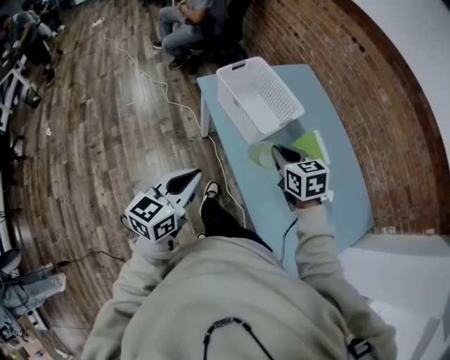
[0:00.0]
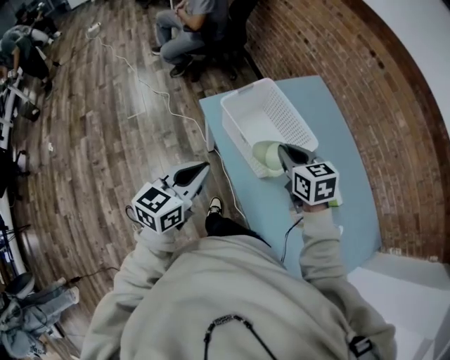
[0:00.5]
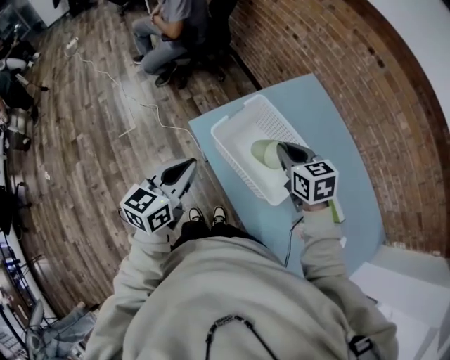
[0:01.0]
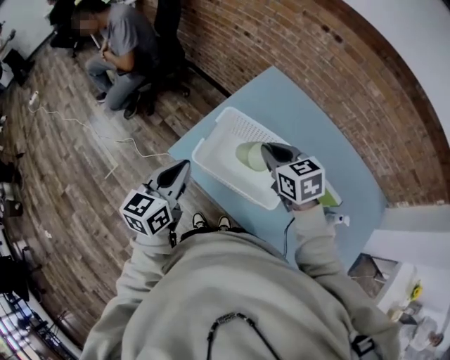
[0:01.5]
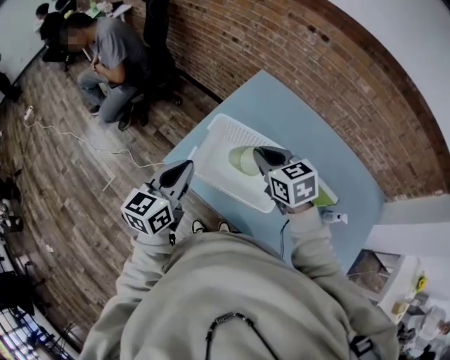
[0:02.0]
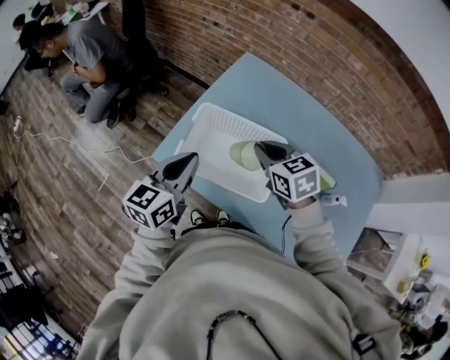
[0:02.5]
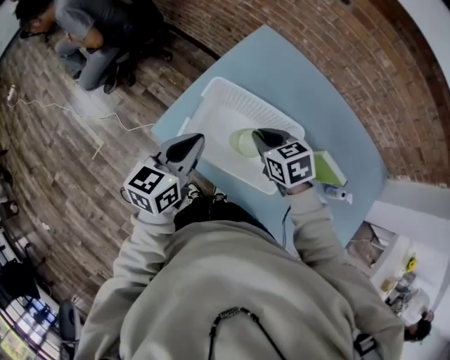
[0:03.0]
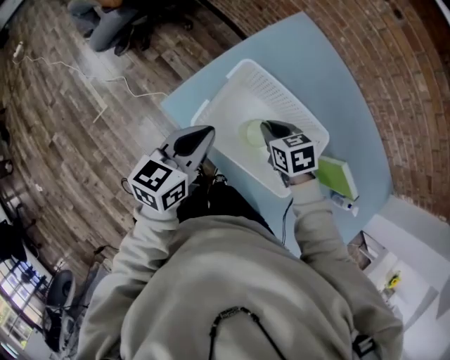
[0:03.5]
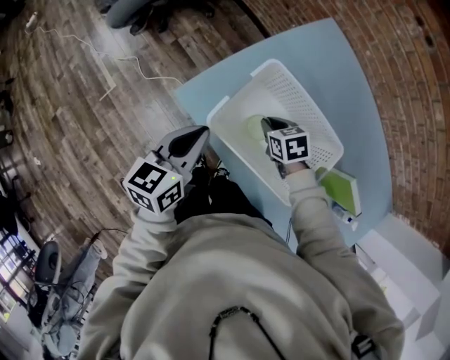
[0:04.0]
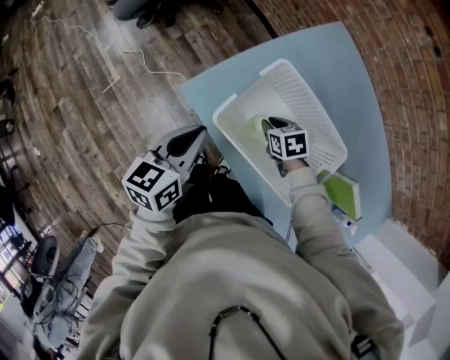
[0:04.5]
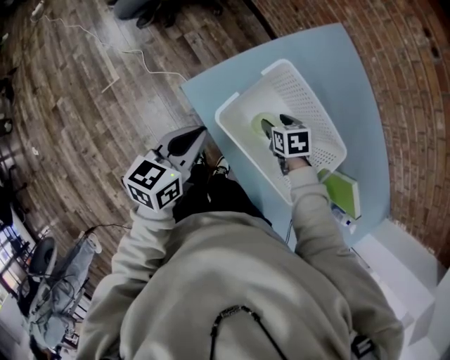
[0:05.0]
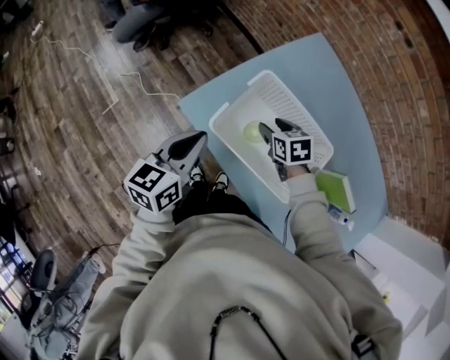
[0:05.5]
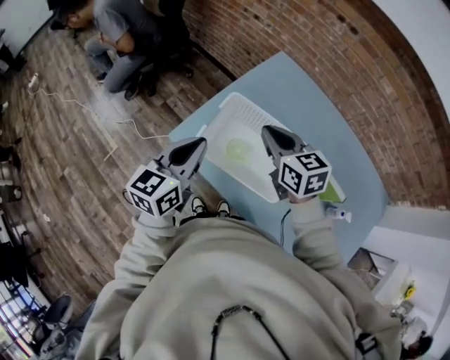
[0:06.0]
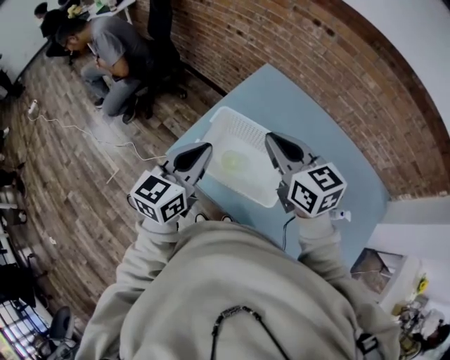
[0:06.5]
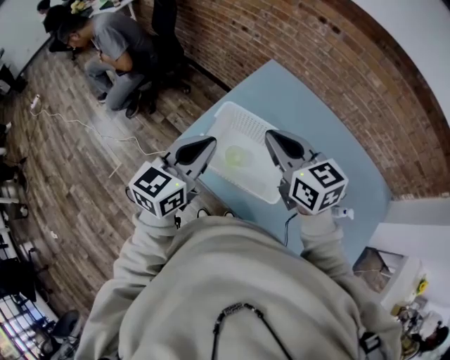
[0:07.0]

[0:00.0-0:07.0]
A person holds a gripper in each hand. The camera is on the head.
0:00.0 to 0:02.0: The grippers both shift forward by roughly 35 cm. The left gripper swivels some 20 degrees.
0:02.0 to 0:03.5: The right gripper goes some 20 cm downward, and rotates approximately 20 degrees. Meanwhile the left gripper shifts about 10 cm downward.
0:03.5 to 0:05.0: The right gripper goes approximately 10 cm downward, and opens up; the left gripper goes roughly 5 cm to the left.
0:05.0 to 0:07.0: The left gripper moves upward and to the right, approximately 20 cm, and swivels roughly 30 degrees. Meanwhile the right gripper travels upward by roughly 40 cm, points its fingers approximately 50 degrees further upward, and closes its fingers.

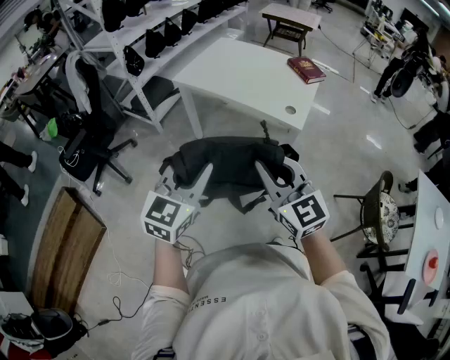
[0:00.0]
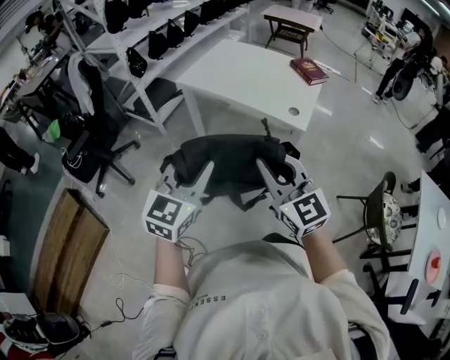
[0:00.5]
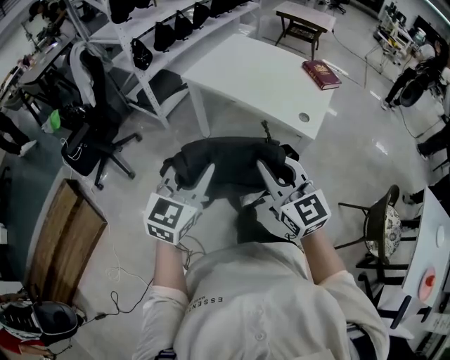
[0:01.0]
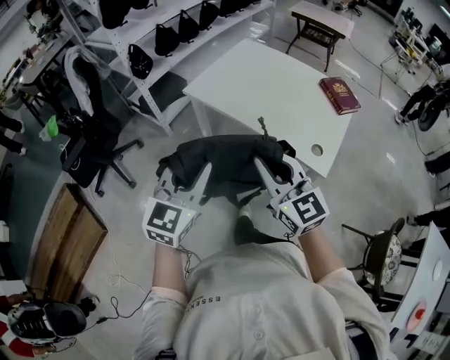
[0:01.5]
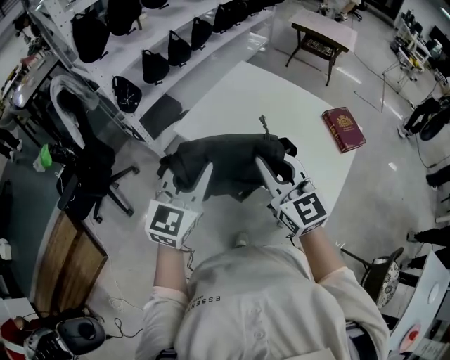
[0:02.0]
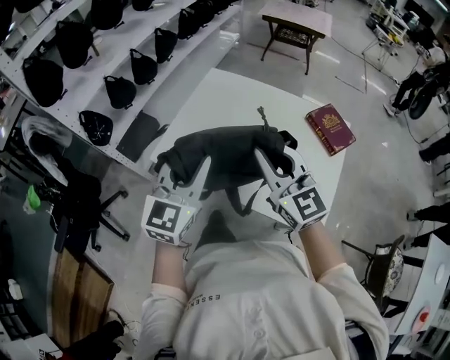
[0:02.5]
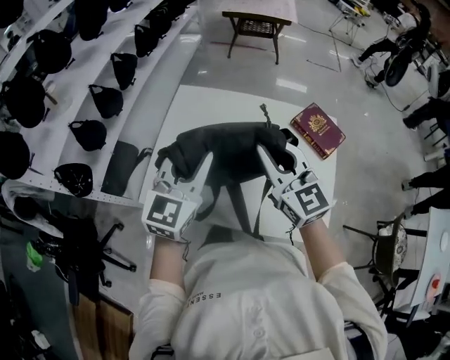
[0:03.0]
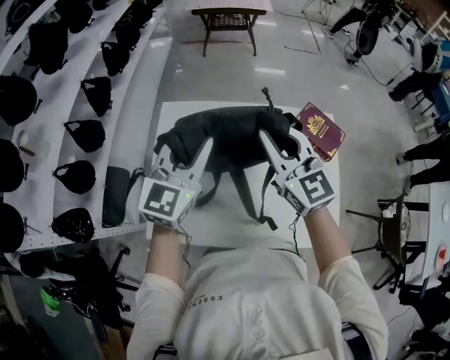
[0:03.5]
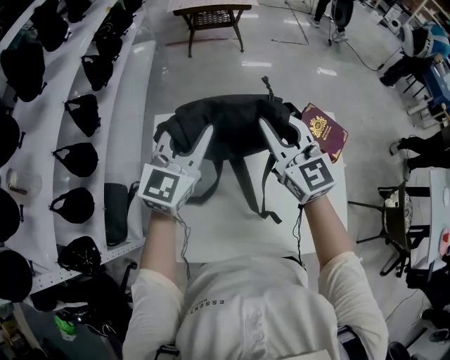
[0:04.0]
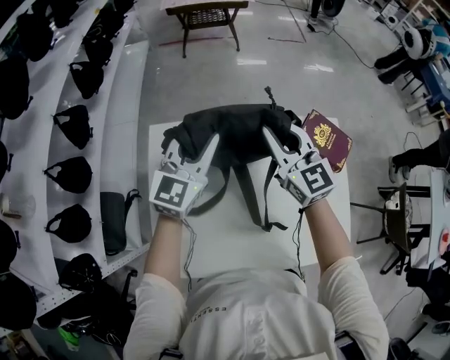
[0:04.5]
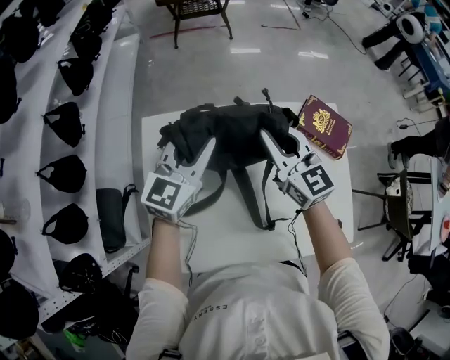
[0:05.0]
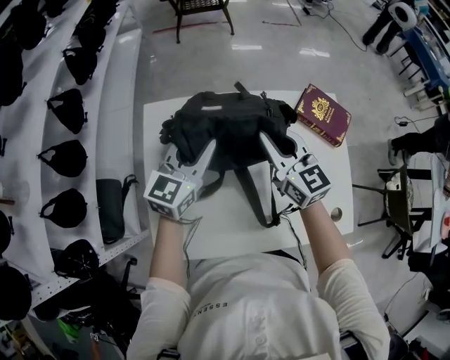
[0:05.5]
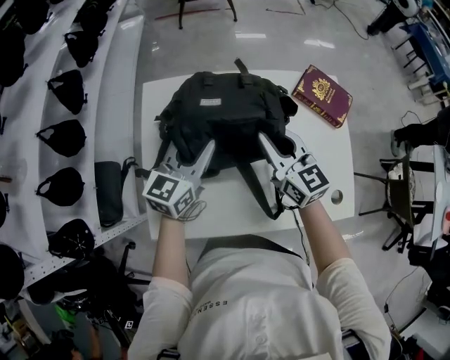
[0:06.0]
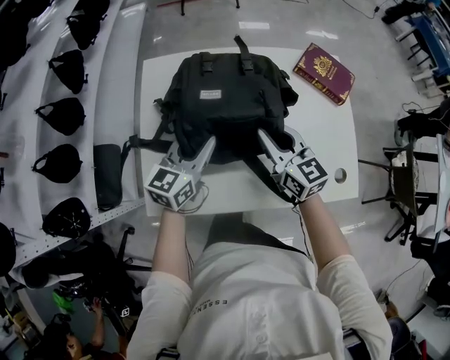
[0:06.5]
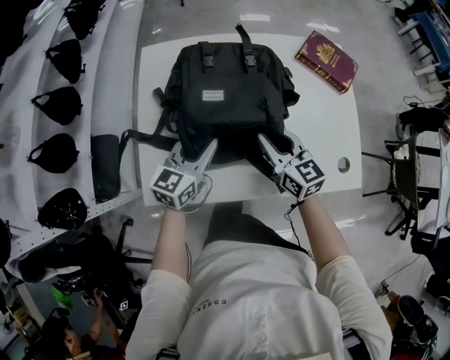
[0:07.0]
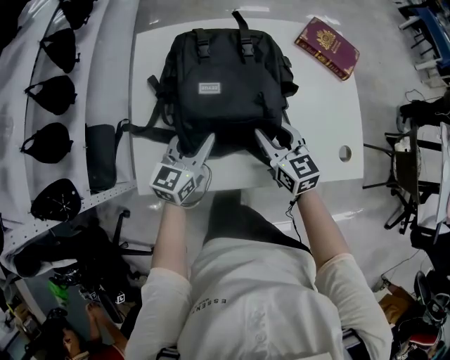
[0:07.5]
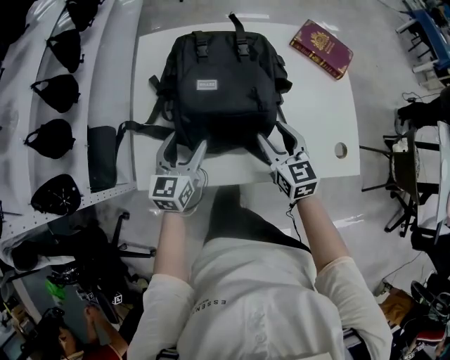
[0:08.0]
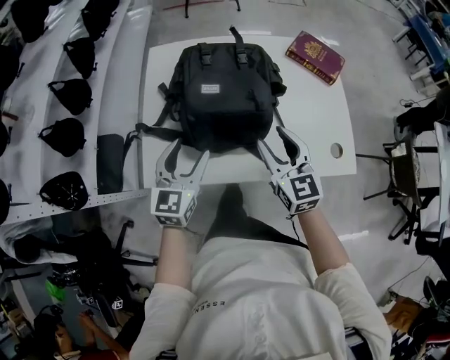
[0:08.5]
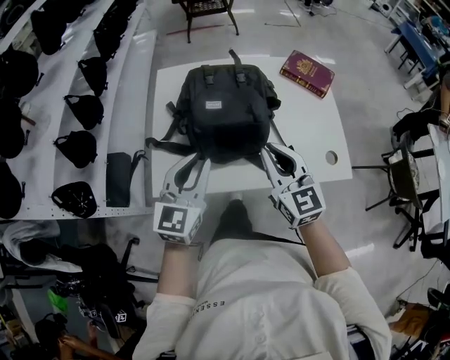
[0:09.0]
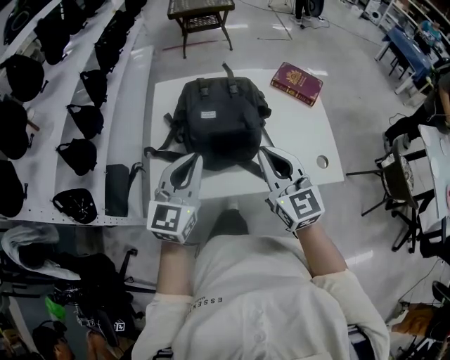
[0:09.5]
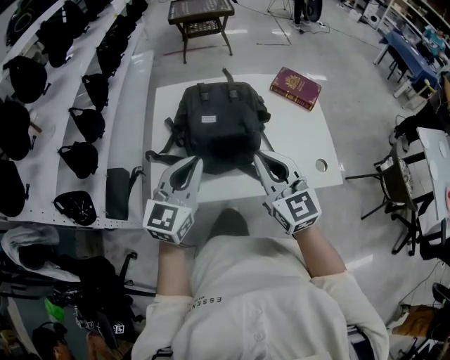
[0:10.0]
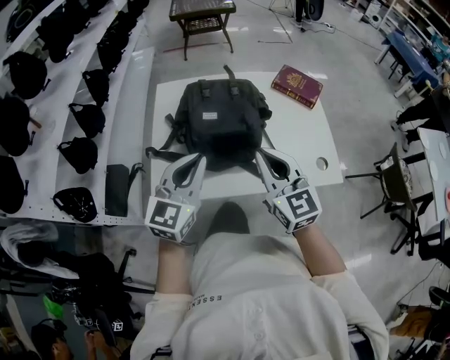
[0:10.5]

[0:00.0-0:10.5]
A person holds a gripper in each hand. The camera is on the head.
0:00.0 to 0:02.0: The pair of grippers is taken forward, some 40 cm.
0:02.0 to 0:04.0: The pair of grippers is taken some 50 cm. The right gripper turns by approximately 40 degrees; the left gripper turns by about 40 degrees.
0:04.0 to 0:06.5: Both grippers travel together downward and backward, about 25 cm. The right gripper swivels roughly 20 degrees. The left gripper changes its angle by roughly 30 degrees.
0:06.5 to 0:08.5: Both grippers travel together backward, some 15 cm. The right gripper opens up. Meanwhile the left gripper rotates some 20 degrees, and opens up.
0:08.5 to 0:10.5: The left gripper is displaced upward by roughly 15 cm, and closes. Meanwhile the right gripper heads upward and backward, covering about 15 cm, and closes.

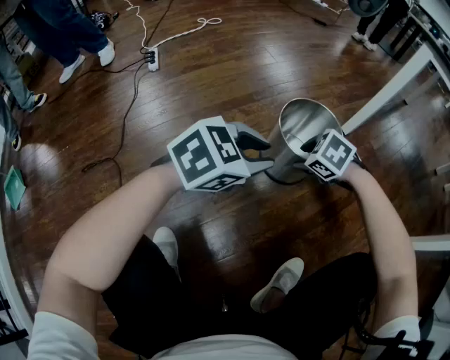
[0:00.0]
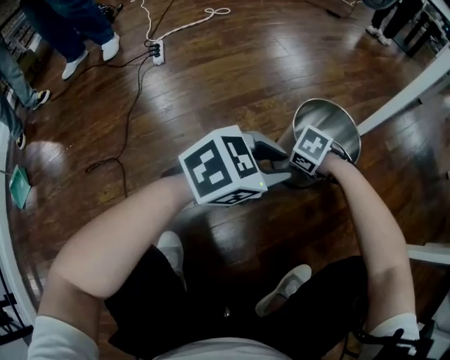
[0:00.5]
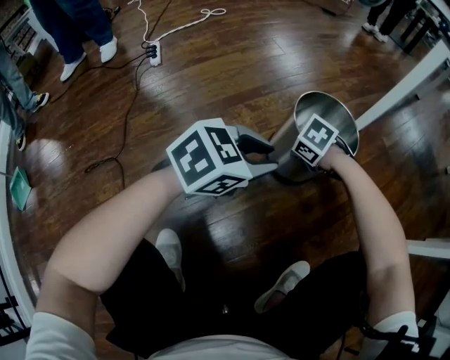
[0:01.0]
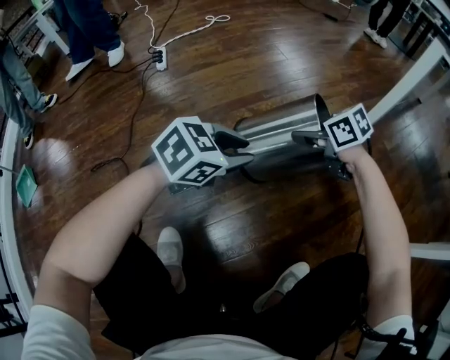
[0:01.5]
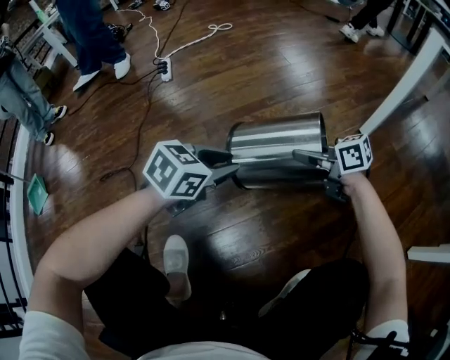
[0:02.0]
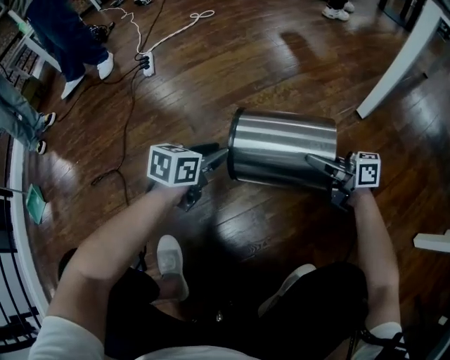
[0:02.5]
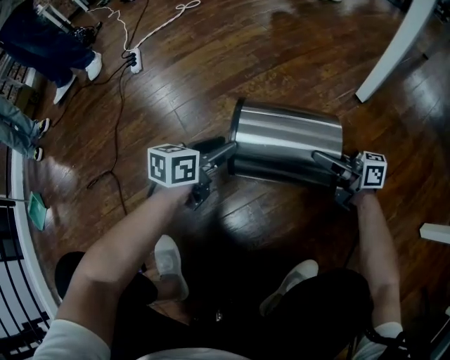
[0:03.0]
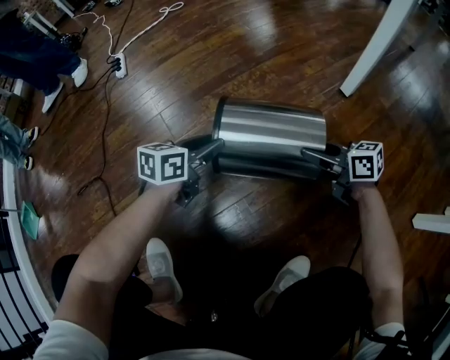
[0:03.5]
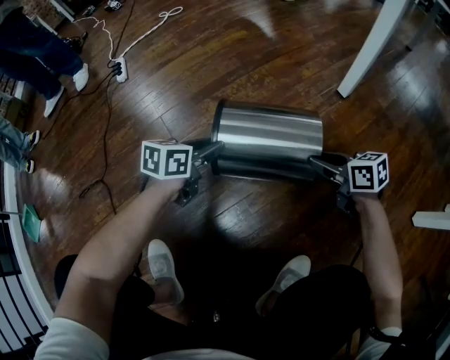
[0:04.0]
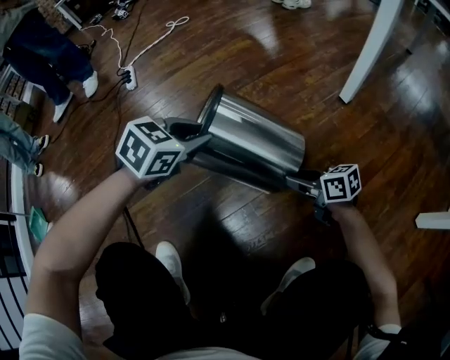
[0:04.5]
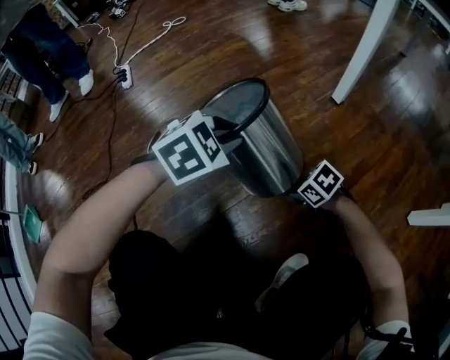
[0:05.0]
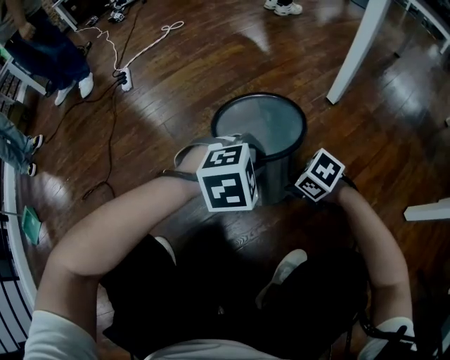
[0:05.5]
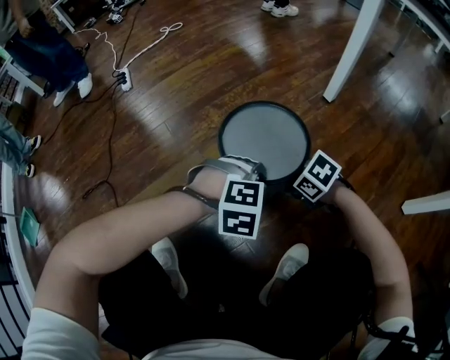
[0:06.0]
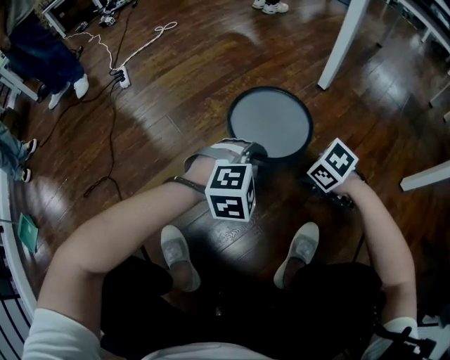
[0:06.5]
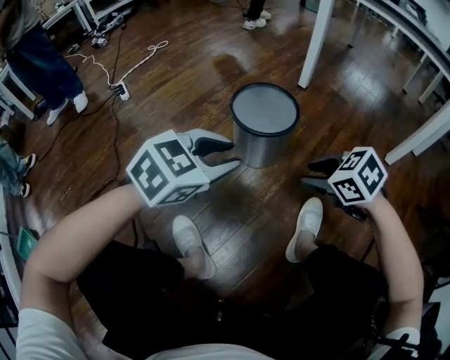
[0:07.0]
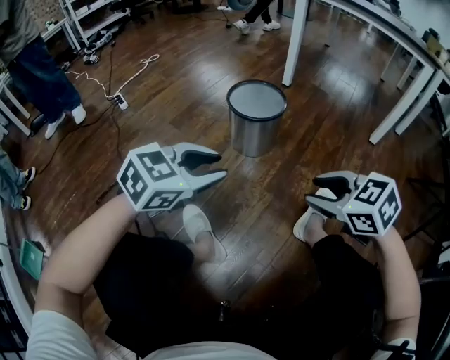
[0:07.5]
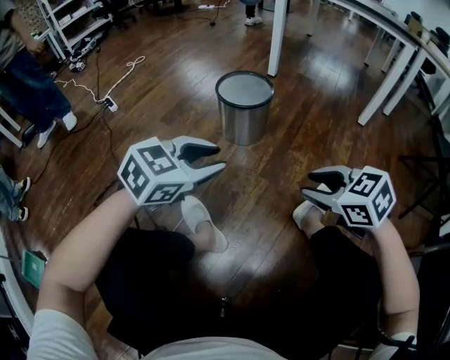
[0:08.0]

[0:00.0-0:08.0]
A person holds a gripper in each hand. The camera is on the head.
0:00.0 to 0:02.0: The left gripper shifts by about 10 cm, and changes its angle by some 30 degrees, while the right gripper goes downward and returns, approximately 10 cm each way, angles its fingers upward, by some 50 degrees, and closes.
0:02.0 to 0:04.0: The left gripper heads downward, covering some 10 cm, and turns by some 20 degrees, while the right gripper ends up about 20 cm from where it was, and turns by about 20 degrees.
0:04.0 to 0:06.0: The right gripper shifts by approximately 15 cm, and angles its fingers downward, by some 30 degrees. Meanwhile the left gripper moves approximately 10 cm upward and comes back, and twists roughly 90 degrees clockwise, seen from behind.
0:06.0 to 0:08.0: The right gripper changes place by about 40 cm, and changes its angle by some 40 degrees. The left gripper shifts by approximately 35 cm, and tips its fingers upward by approximately 30 degrees.

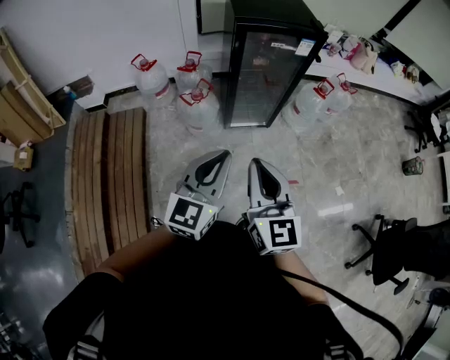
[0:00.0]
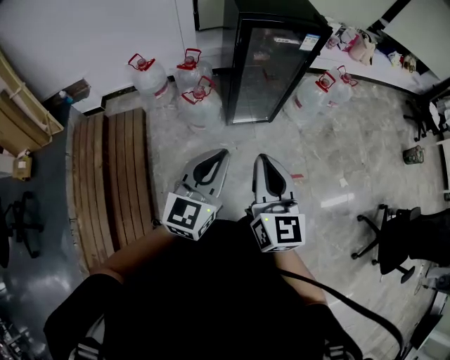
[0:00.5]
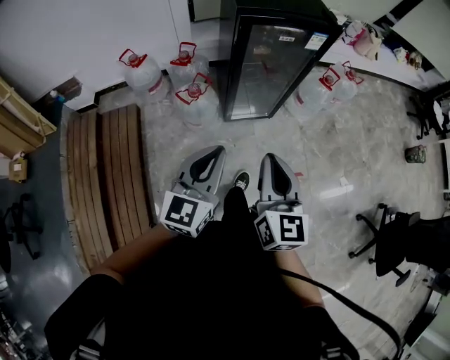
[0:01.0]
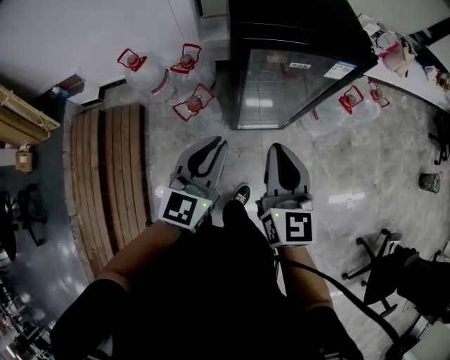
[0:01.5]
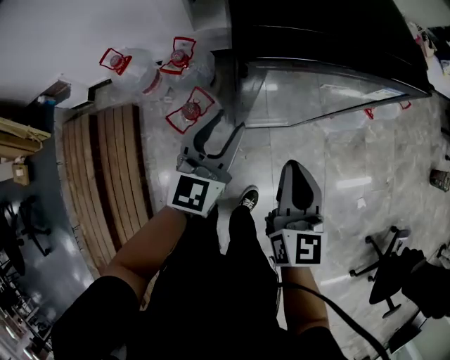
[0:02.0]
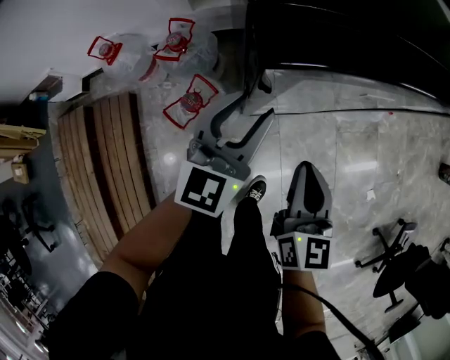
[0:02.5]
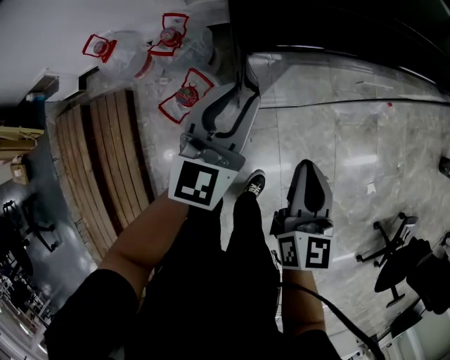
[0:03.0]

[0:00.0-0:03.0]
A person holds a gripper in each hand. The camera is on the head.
0:00.0 to 0:01.5: Both grippers move forward, approximately 30 cm.
0:01.5 to 0:03.0: The right gripper moves downward and forward, approximately 25 cm. The left gripper moves forward and downward, some 25 cm.
